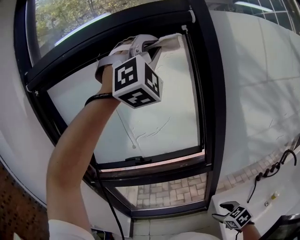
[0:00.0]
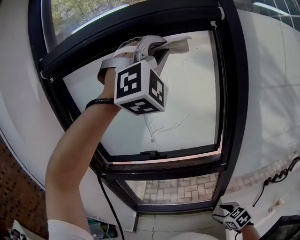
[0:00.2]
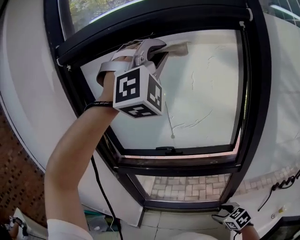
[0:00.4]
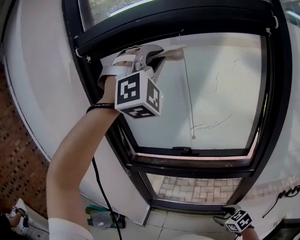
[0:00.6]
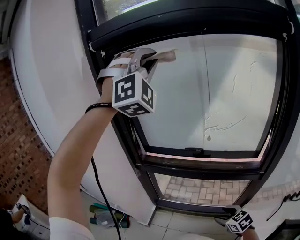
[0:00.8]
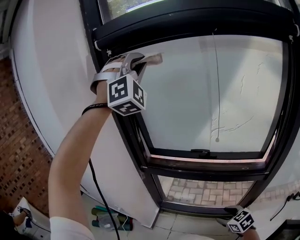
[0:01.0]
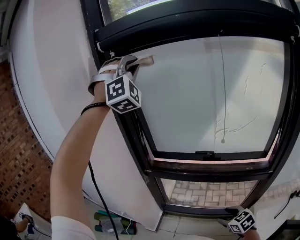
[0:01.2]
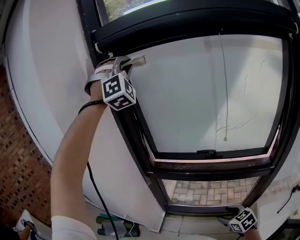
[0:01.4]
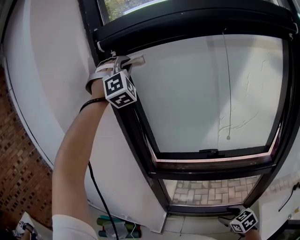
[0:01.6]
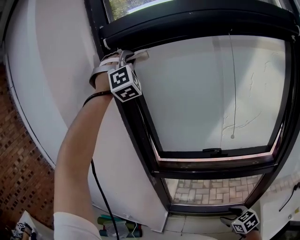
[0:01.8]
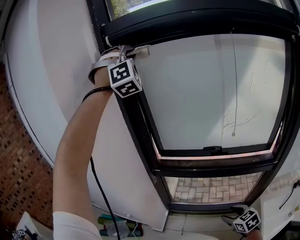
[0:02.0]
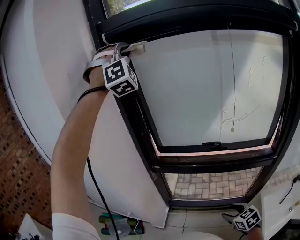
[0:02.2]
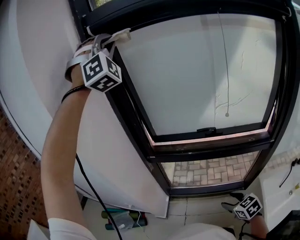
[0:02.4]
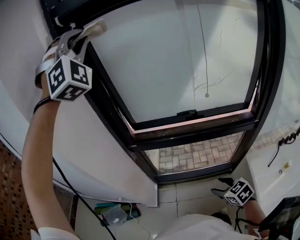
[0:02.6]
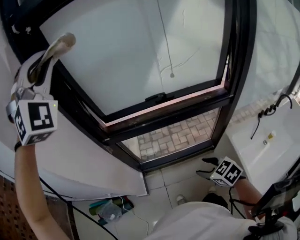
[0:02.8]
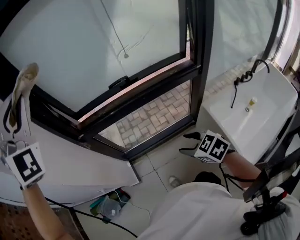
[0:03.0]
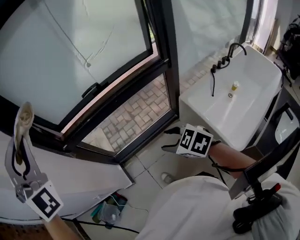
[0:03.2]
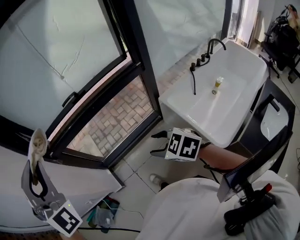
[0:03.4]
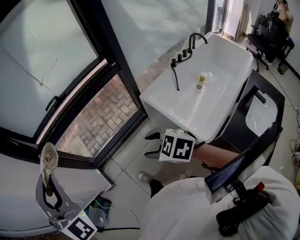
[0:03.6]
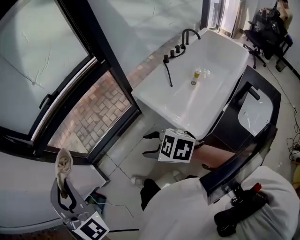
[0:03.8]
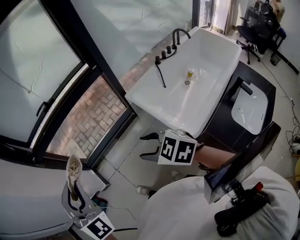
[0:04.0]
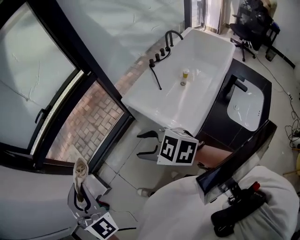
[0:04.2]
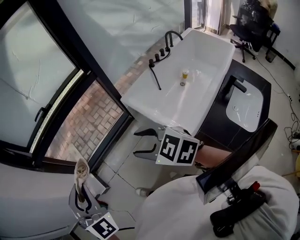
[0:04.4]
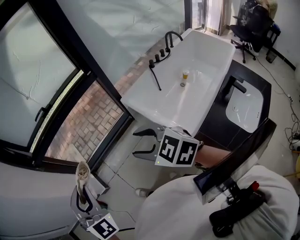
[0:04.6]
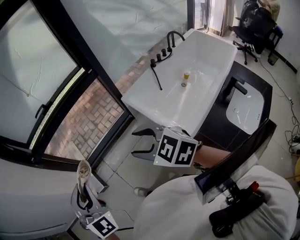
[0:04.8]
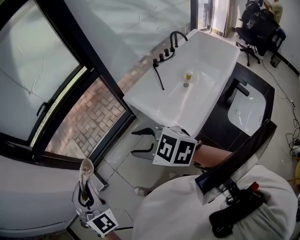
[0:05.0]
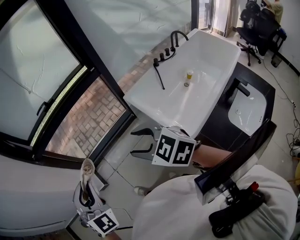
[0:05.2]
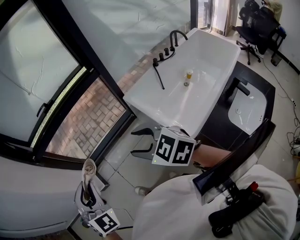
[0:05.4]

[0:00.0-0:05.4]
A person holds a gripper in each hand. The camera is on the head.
0:00.0 to 0:01.4: The right gripper ends up approximately 30 cm from where it was.
0:01.4 to 0:02.8: The right gripper changes place by some 10 cm.
0:02.8 to 0:04.0: The right gripper changes place by some 30 cm.
0:04.0 to 0:05.4: The right gripper changes place by some 5 cm.

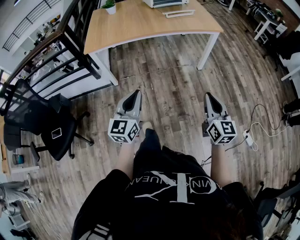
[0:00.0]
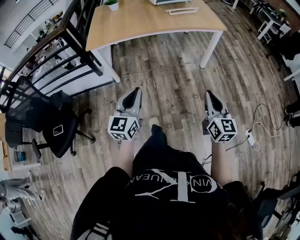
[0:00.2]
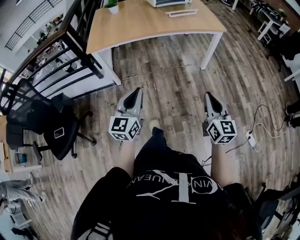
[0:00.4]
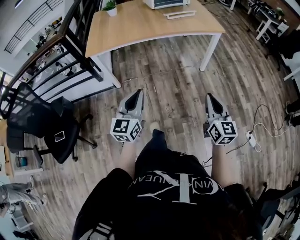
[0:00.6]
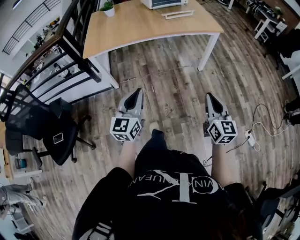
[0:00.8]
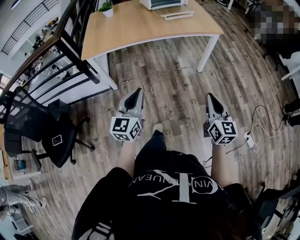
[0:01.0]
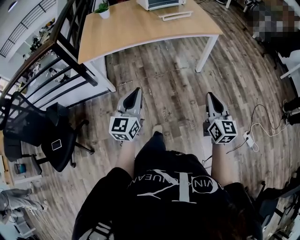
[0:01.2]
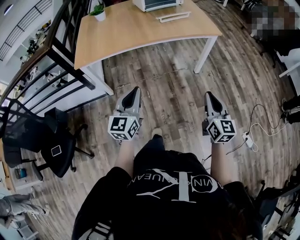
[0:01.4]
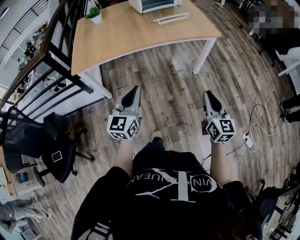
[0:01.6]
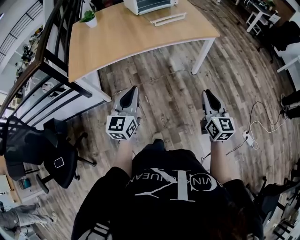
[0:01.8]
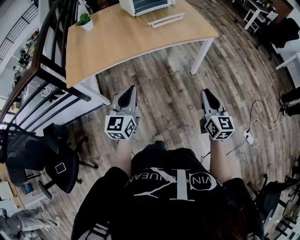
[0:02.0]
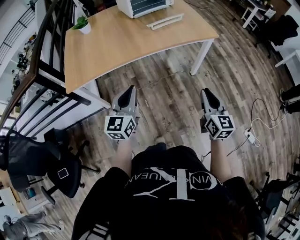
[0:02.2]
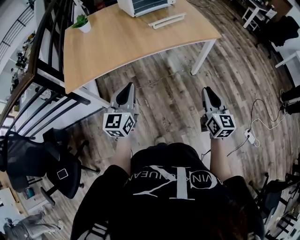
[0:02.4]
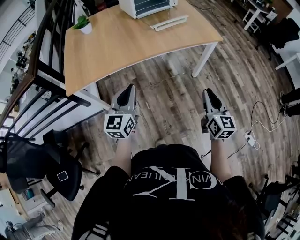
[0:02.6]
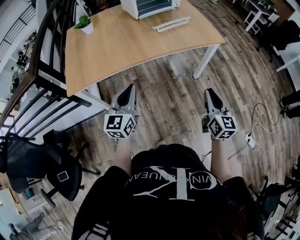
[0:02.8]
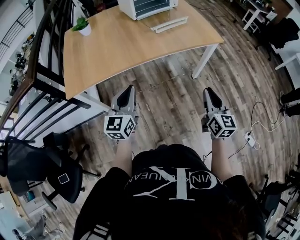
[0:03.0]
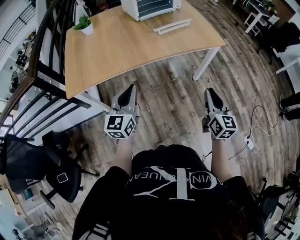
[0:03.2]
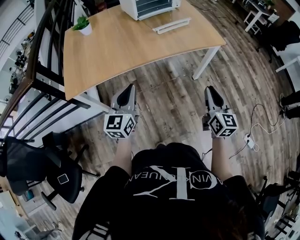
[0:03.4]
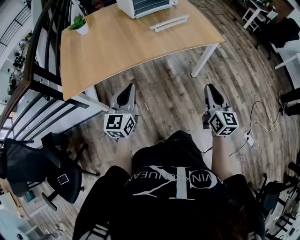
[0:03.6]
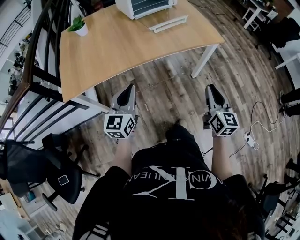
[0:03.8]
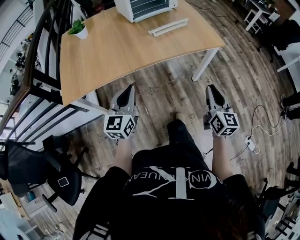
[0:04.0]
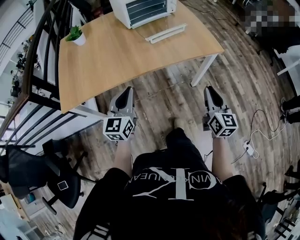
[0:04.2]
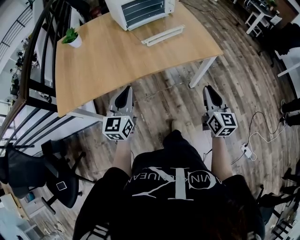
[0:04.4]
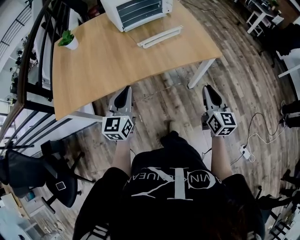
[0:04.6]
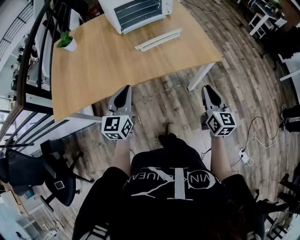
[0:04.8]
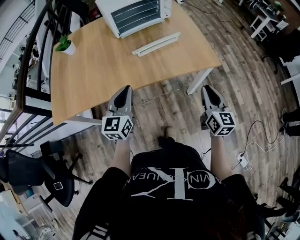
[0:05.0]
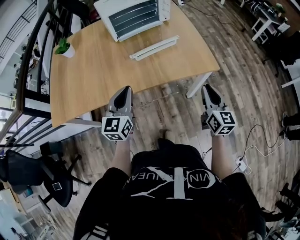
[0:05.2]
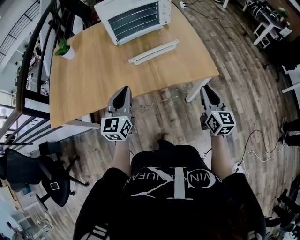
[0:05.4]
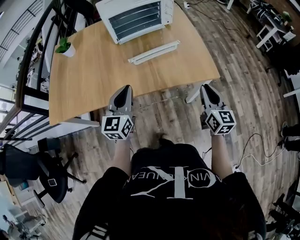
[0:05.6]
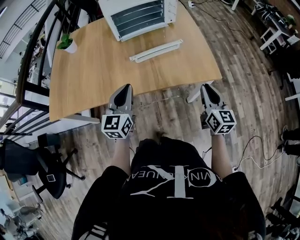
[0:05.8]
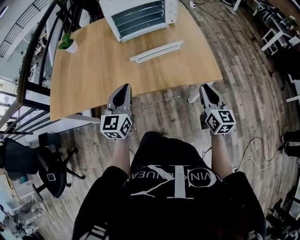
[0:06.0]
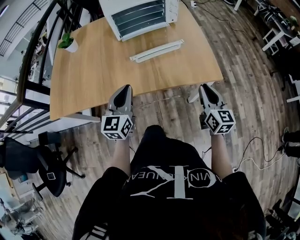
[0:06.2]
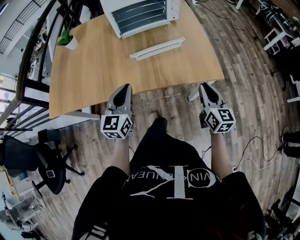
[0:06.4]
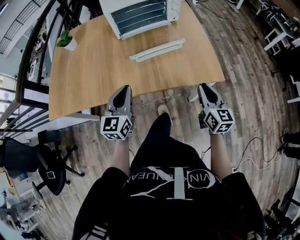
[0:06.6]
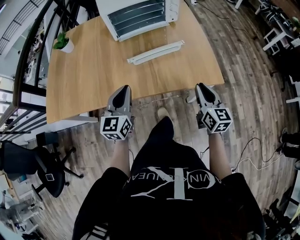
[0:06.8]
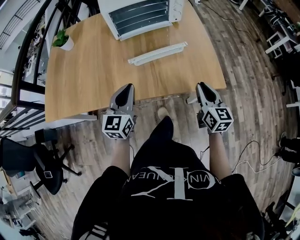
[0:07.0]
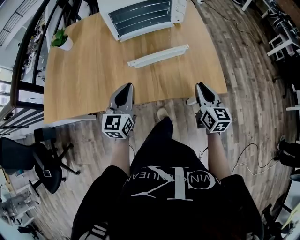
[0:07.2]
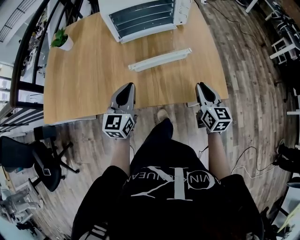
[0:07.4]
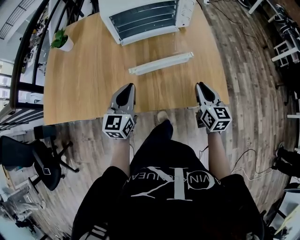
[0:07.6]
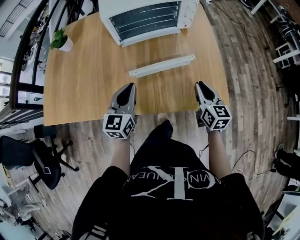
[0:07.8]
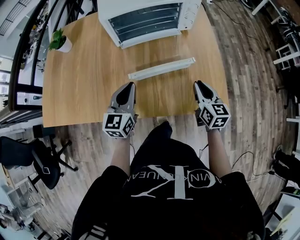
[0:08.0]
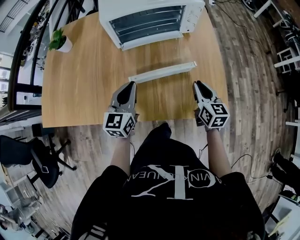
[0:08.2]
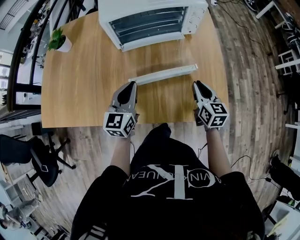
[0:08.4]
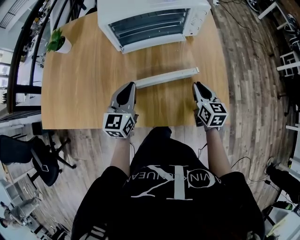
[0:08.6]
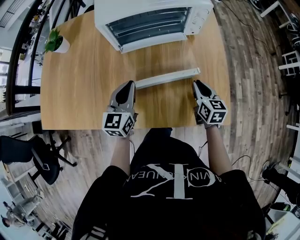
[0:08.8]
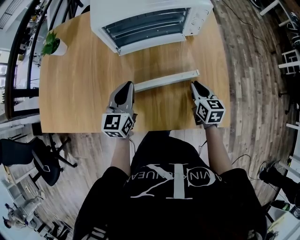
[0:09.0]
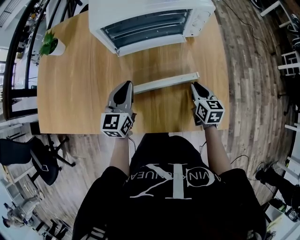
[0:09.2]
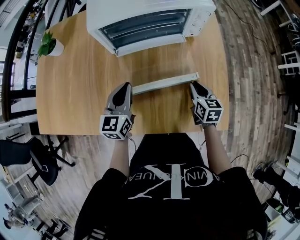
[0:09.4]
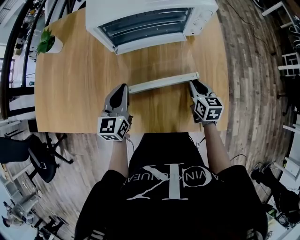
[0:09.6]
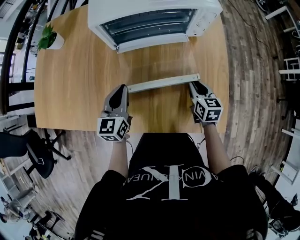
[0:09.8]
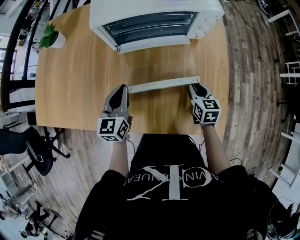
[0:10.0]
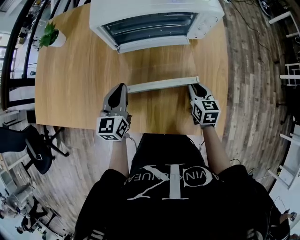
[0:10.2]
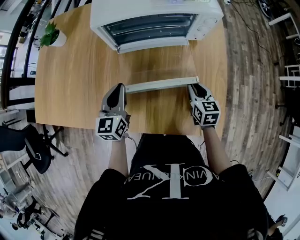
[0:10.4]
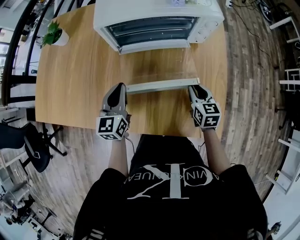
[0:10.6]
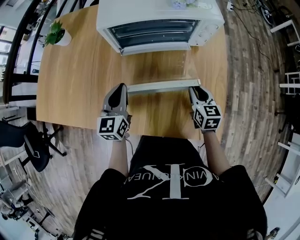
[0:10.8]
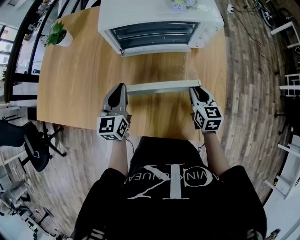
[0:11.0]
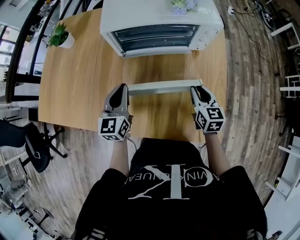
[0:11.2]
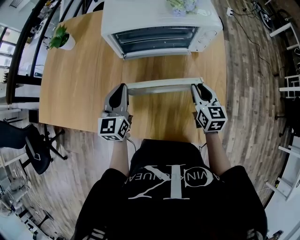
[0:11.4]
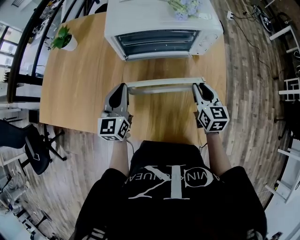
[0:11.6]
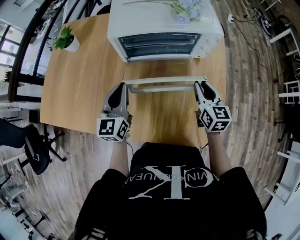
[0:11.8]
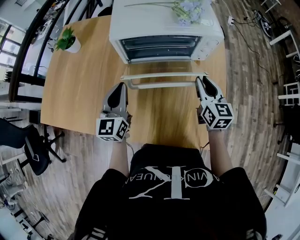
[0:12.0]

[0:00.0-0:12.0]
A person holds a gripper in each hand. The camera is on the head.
0:00.0 to 0:01.6: The grippers both shift forward by approximately 15 cm.
0:01.6 to 0:03.0: The left gripper moves forward and to the left, approximately 15 cm. The right gripper goes about 15 cm forward.
0:03.0 to 0:04.4: The two grippers go roughly 15 cm forward and to the right.
0:04.4 to 0:06.0: The grippers both shift forward and to the right by approximately 20 cm.
0:06.0 to 0:07.6: Both grippers travel together forward, roughly 15 cm.
0:07.6 to 0:09.0: The right gripper travels forward and downward by some 15 cm. The left gripper shifts some 10 cm forward.
0:09.0 to 0:10.4: The grippers stay close to where they were, moving slightly.
0:10.4 to 0:12.0: The left gripper moves upward, some 10 cm; the right gripper moves upward and forward, approximately 15 cm.

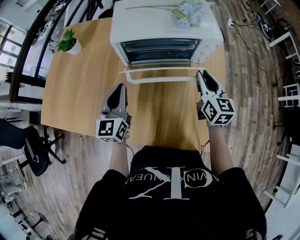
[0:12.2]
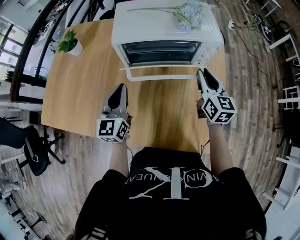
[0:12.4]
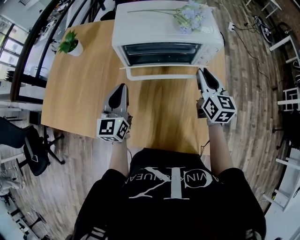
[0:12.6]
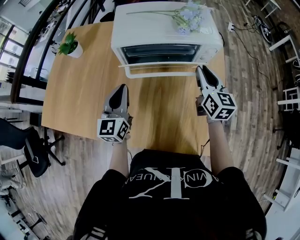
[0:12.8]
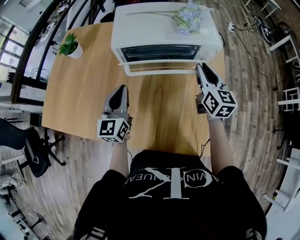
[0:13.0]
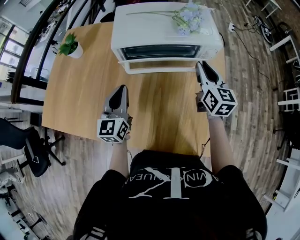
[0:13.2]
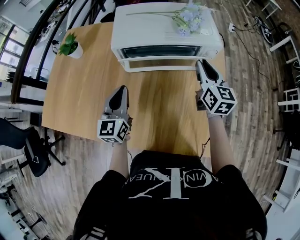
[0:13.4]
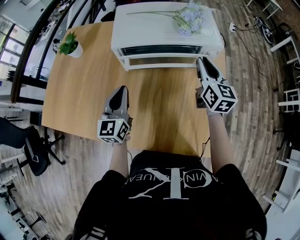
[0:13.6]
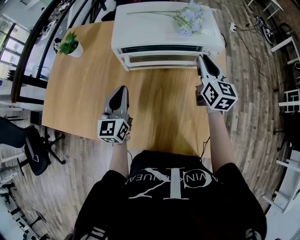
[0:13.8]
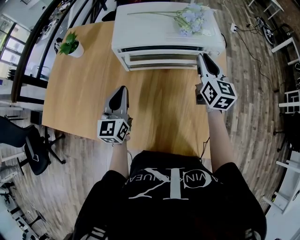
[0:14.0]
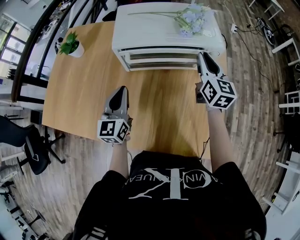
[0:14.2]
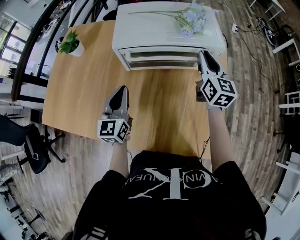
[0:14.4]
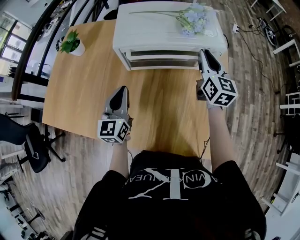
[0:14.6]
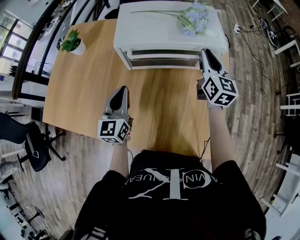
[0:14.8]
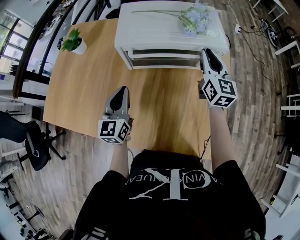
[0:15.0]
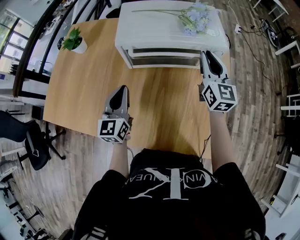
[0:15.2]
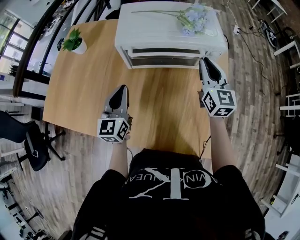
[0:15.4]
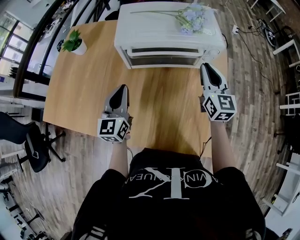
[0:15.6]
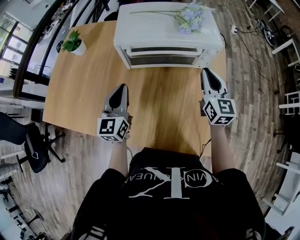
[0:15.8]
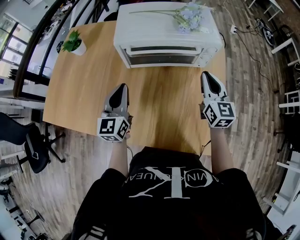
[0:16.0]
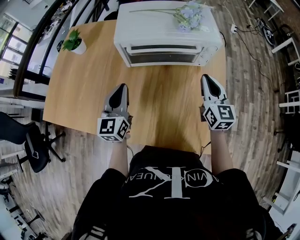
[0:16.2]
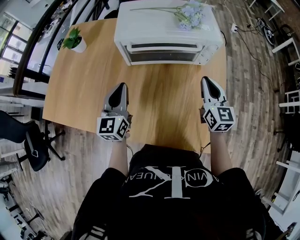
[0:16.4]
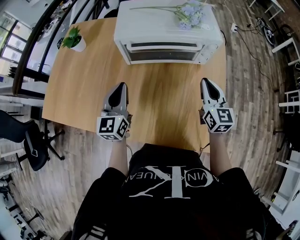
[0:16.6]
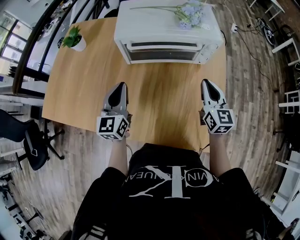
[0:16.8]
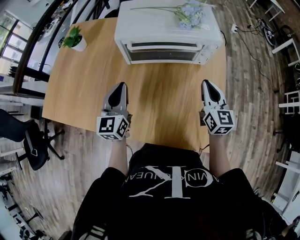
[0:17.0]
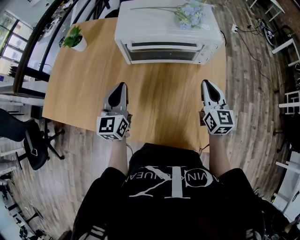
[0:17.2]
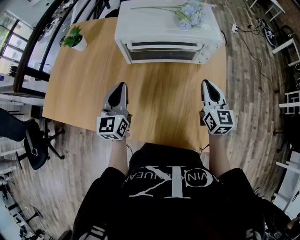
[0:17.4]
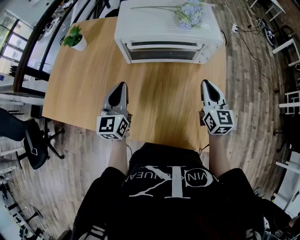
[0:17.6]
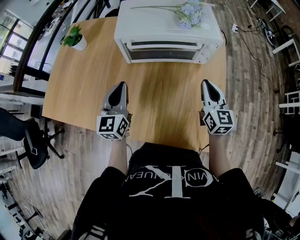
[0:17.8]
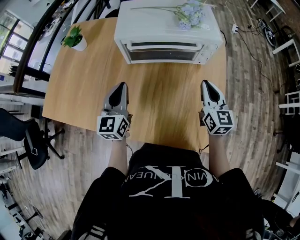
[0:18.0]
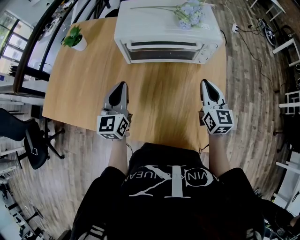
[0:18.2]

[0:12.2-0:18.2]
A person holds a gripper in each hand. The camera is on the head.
0:12.2 to 0:13.8: The right gripper moves forward, about 5 cm.
0:13.8 to 0:15.2: The grippers move only a little.
0:15.2 to 0:16.6: The right gripper moves backward and downward, some 15 cm.
0:16.6 to 0:18.2: The two grippers keep their place.
